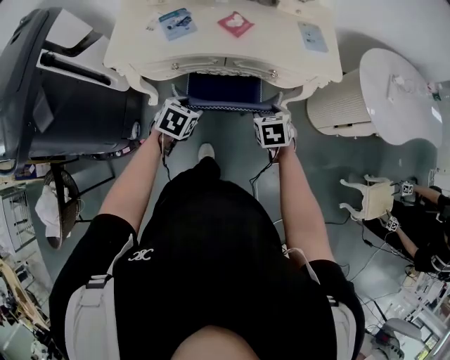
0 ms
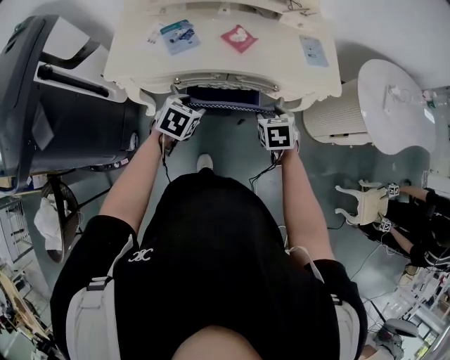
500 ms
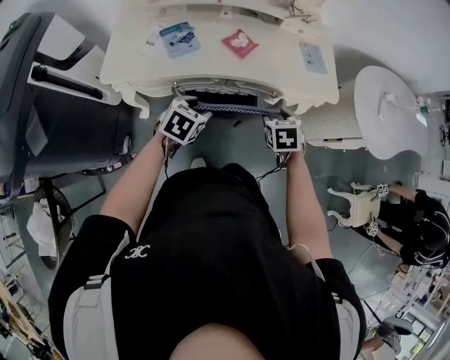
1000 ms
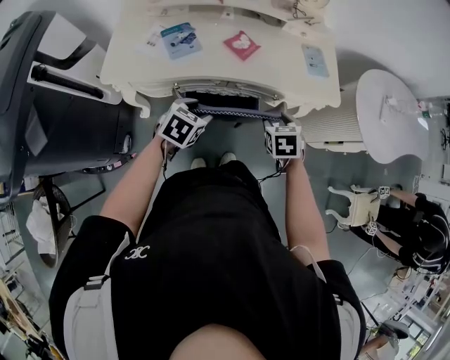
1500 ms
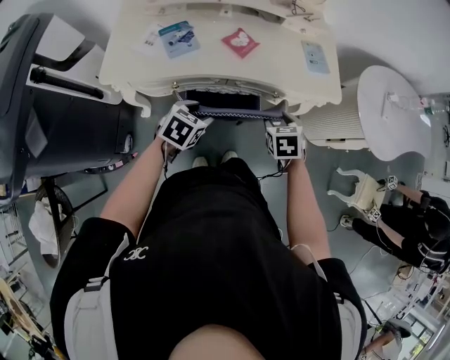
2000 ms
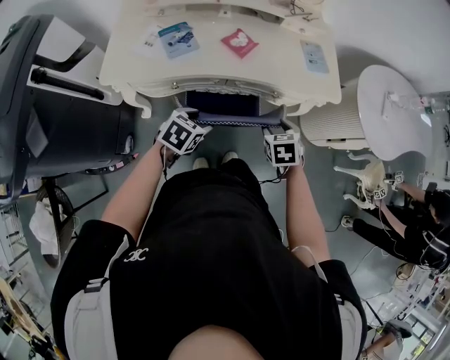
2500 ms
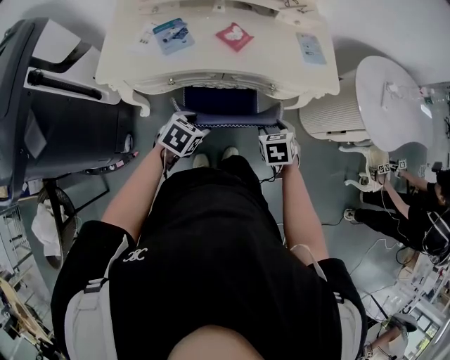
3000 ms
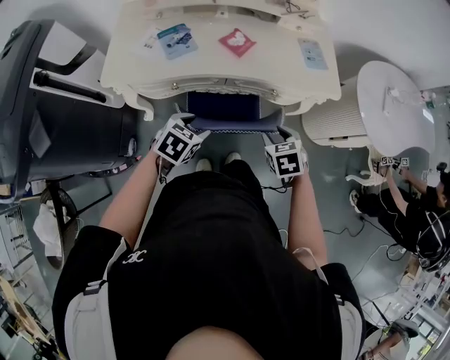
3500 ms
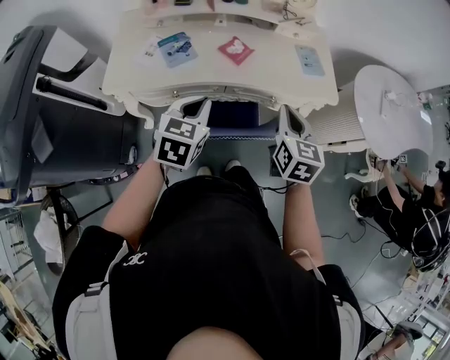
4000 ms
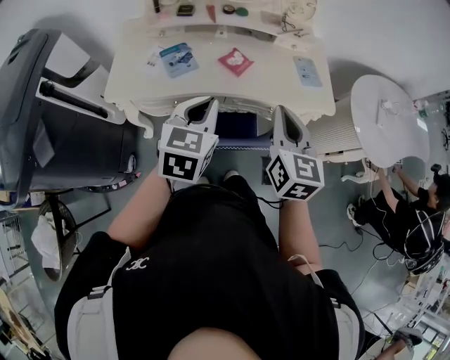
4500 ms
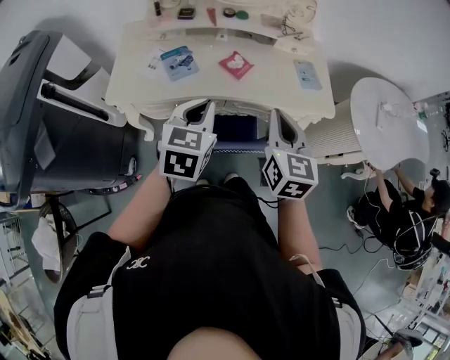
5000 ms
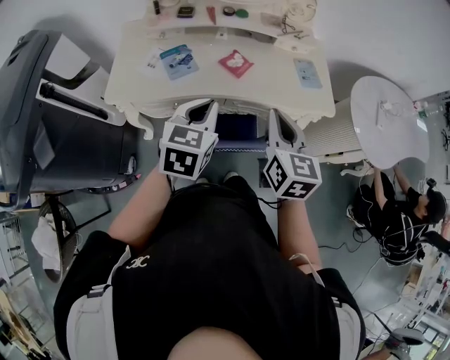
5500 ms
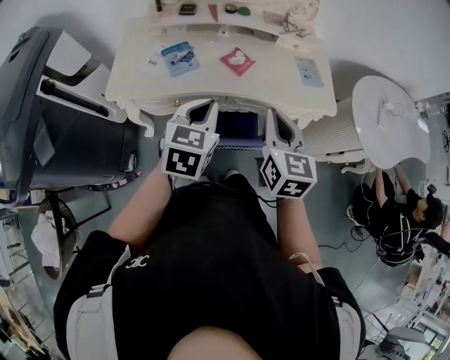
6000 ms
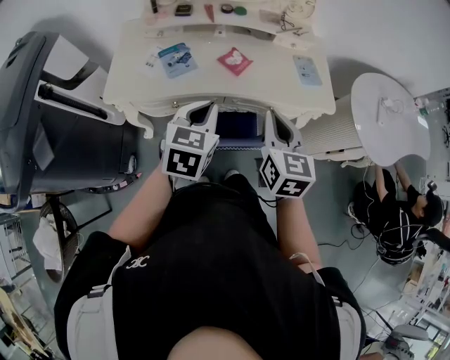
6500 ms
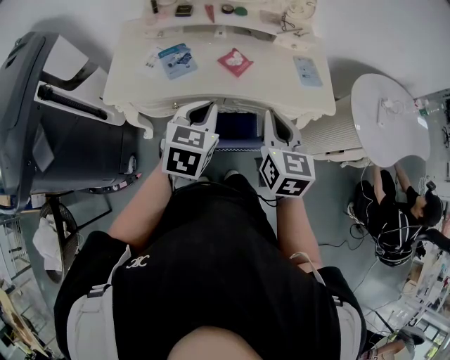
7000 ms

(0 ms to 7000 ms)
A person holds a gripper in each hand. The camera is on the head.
0 ms - 2000 ms: The two grippers go about 5 cm forward.
2000 ms - 3500 ms: The right gripper is displaced backward by some 5 cm.
3500 ms - 5000 ms: The two grippers go about 20 cm upward. The left gripper rotates roughly 30 degrees, and closes up, while the right gripper tilts its fingers some 40 degrees upward, and closes up.
5000 ms - 7000 ms: The grippers move only a little.

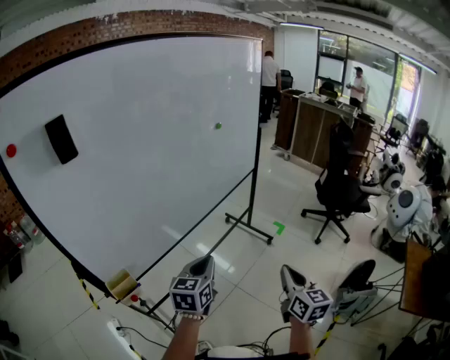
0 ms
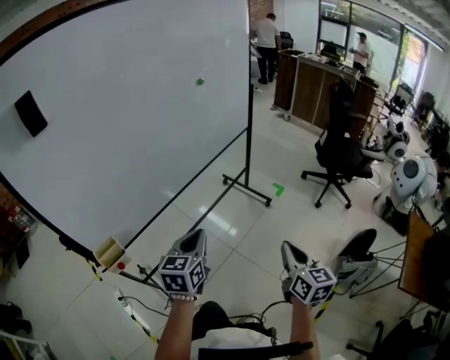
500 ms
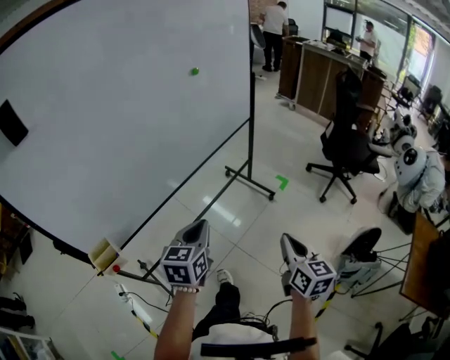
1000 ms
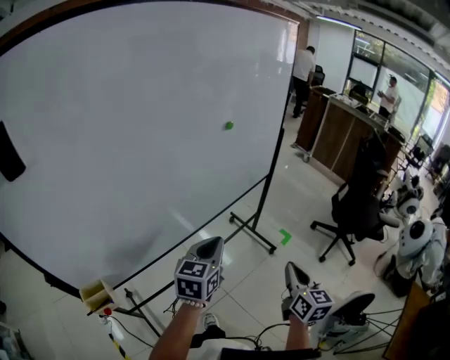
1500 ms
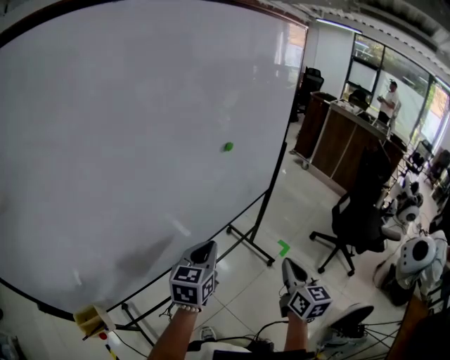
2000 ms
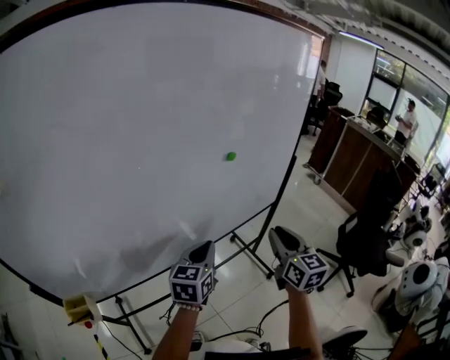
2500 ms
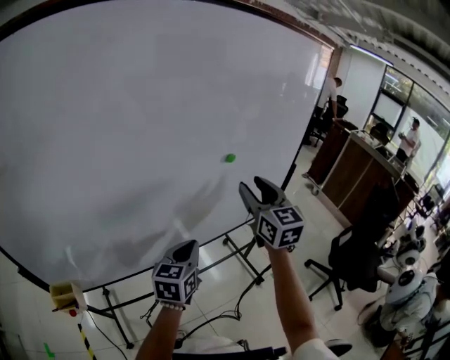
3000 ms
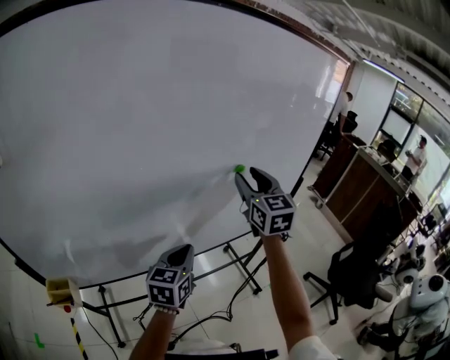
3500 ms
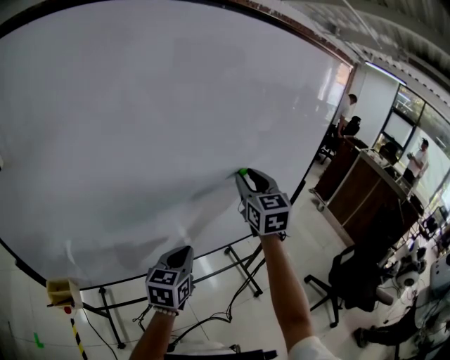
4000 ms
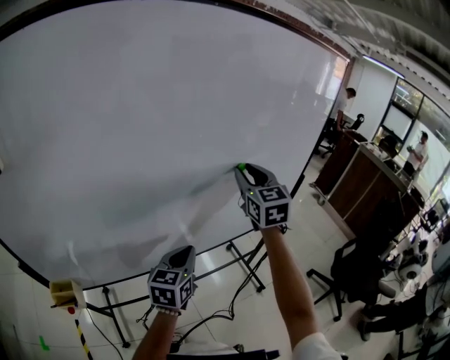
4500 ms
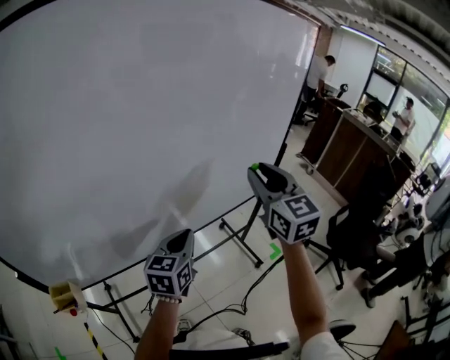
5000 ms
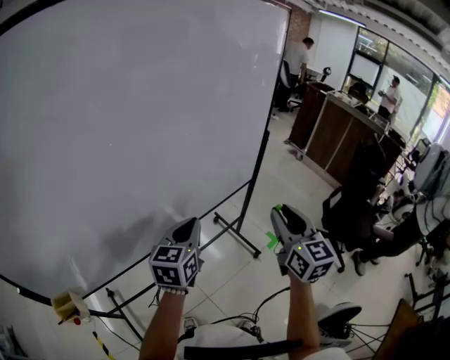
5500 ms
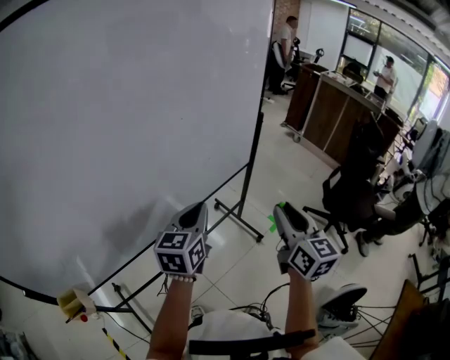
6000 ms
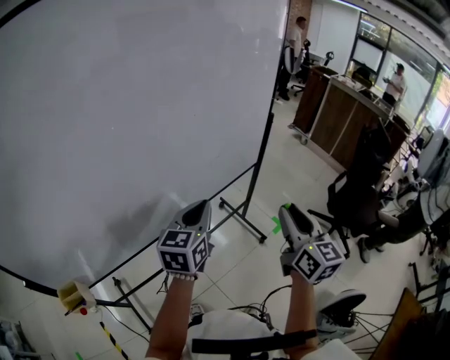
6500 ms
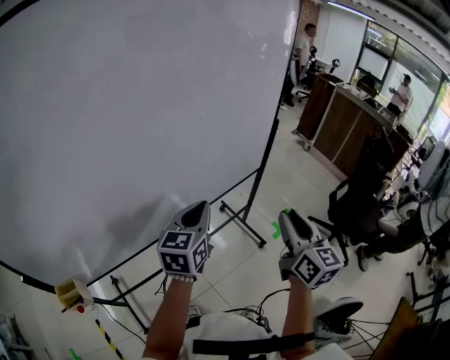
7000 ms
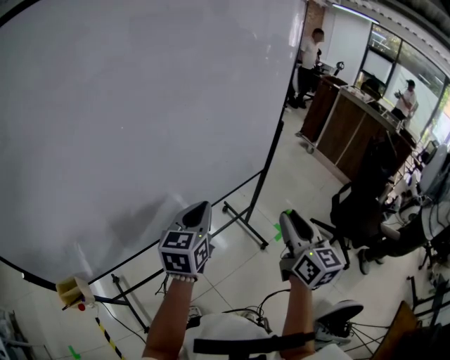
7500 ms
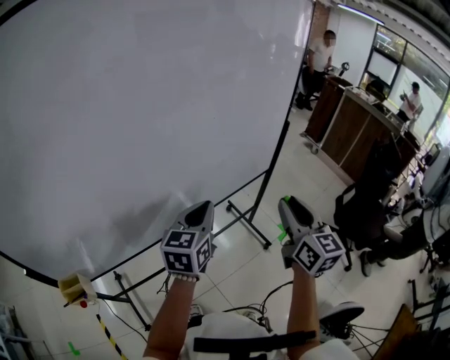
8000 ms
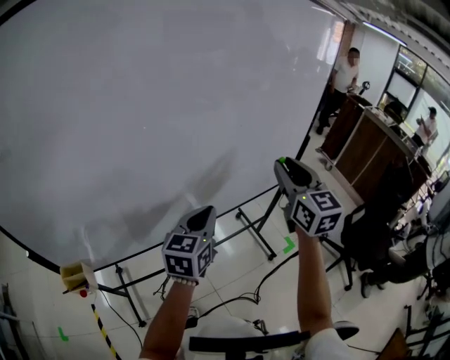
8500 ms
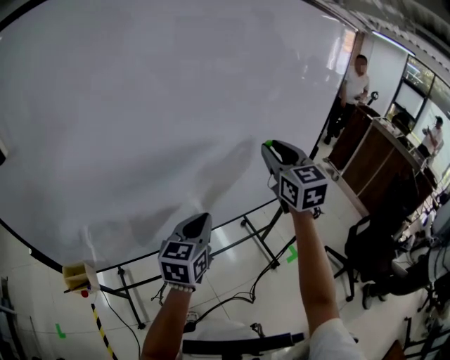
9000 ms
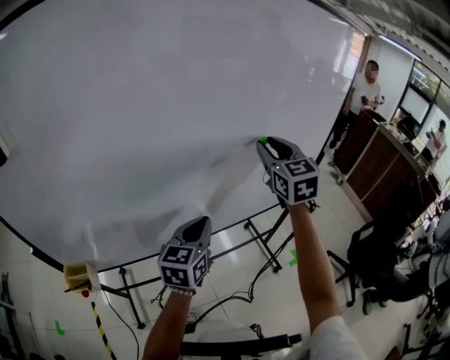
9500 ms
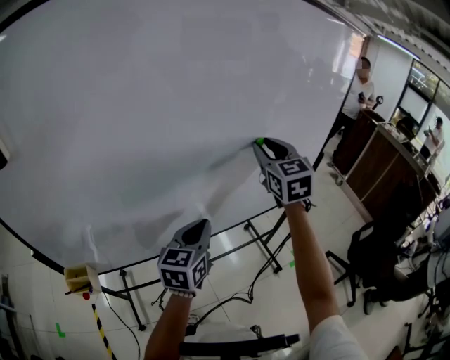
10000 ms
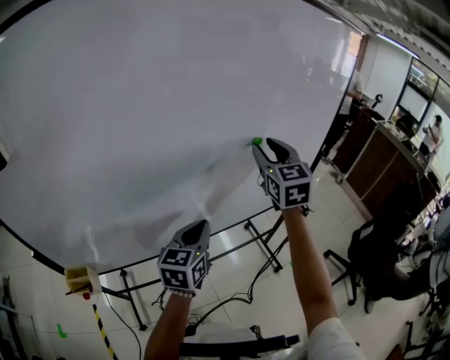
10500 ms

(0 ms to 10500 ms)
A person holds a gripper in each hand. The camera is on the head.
0 ms - 2000 ms: The grippers both shift forward by about 35 cm.
2000 ms - 4000 ms: The right gripper goes some 40 cm forward, upward and to the left, turns by roughly 40 degrees, and opens its fingers. Meanwhile the left gripper ends up approximately 5 cm from where it was.
4000 ms - 6500 ms: The right gripper moves backward, to the right and downward, about 35 cm, and swivels some 30 degrees; the left gripper is displaced to the right by some 10 cm.
6500 ms - 8500 ms: The left gripper moves to the left, about 10 cm. The right gripper travels forward, to the left and upward by about 20 cm, and turns by about 20 degrees.
8500 ms - 10500 ms: The right gripper shifts approximately 15 cm forward and to the left. The left gripper moves approximately 5 cm.

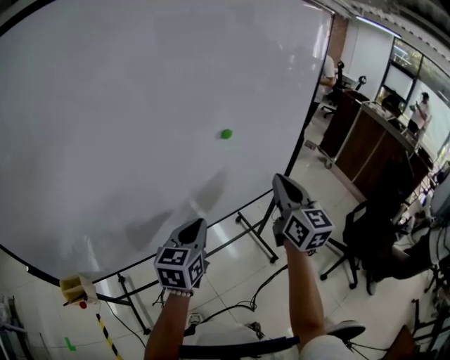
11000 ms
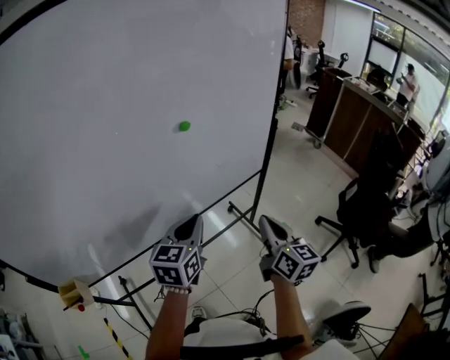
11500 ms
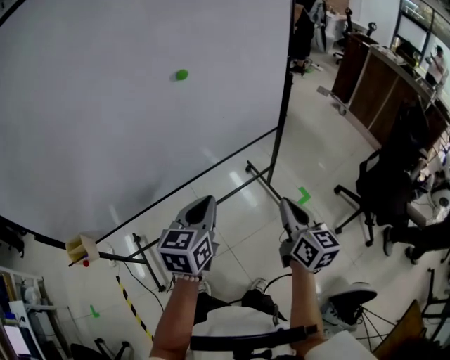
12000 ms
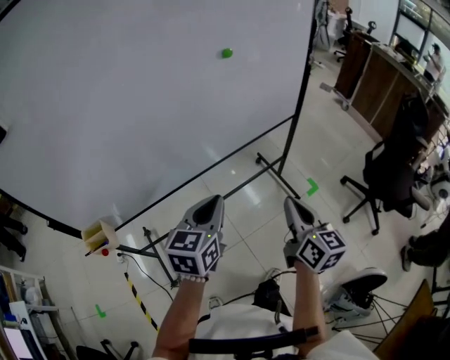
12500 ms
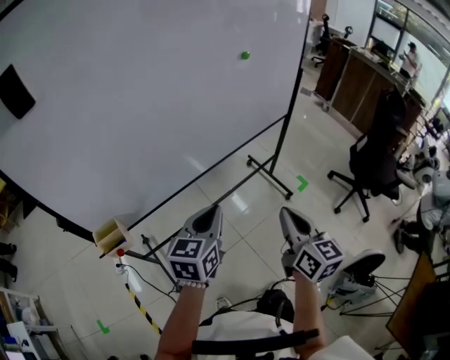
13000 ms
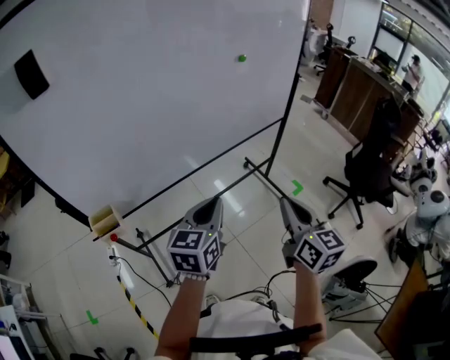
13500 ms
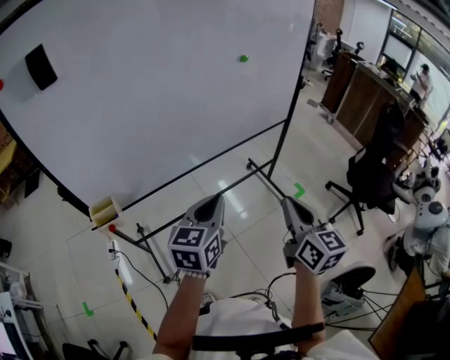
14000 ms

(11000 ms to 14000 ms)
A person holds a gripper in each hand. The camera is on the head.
11000 ms - 12500 ms: The left gripper goes some 15 cm backward; the right gripper moves backward and downward, approximately 30 cm, and rotates roughly 20 degrees.
12500 ms - 14000 ms: The left gripper is displaced backward by roughly 15 cm, while the right gripper moves backward and upward, some 15 cm.

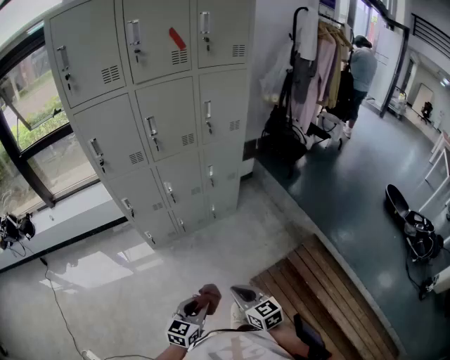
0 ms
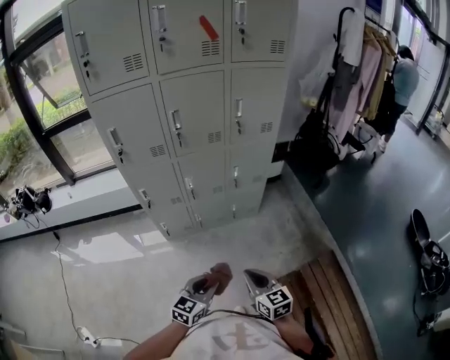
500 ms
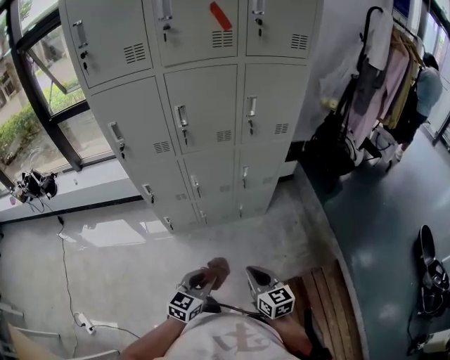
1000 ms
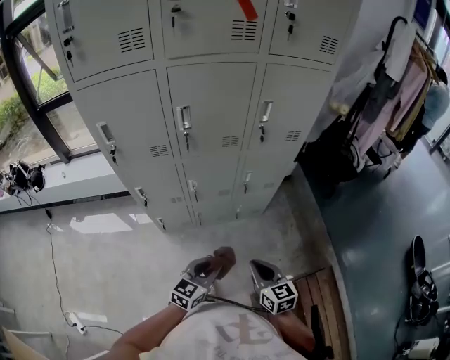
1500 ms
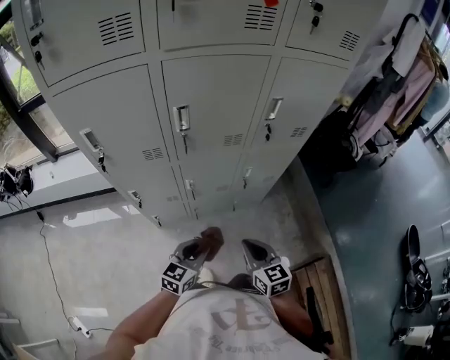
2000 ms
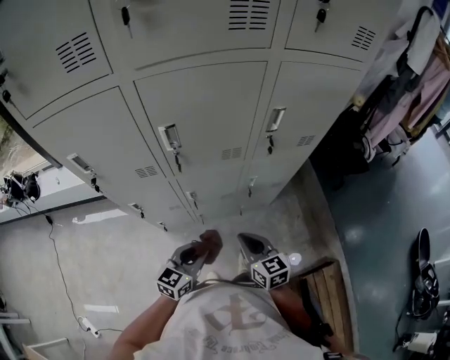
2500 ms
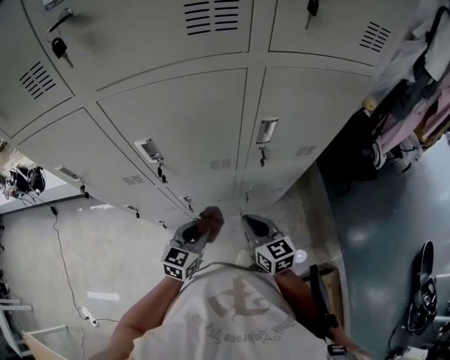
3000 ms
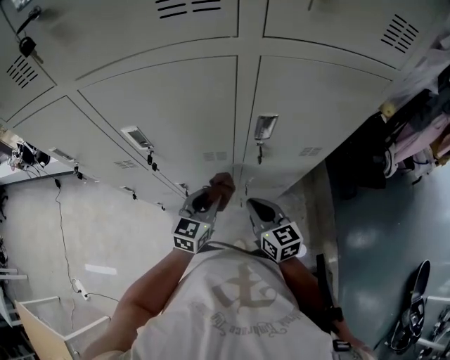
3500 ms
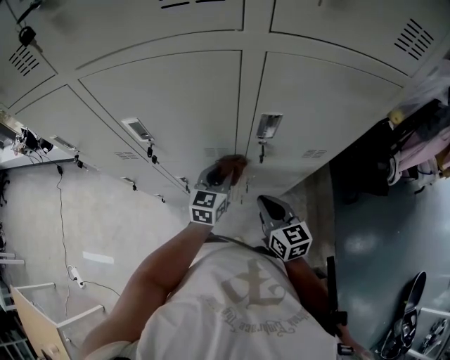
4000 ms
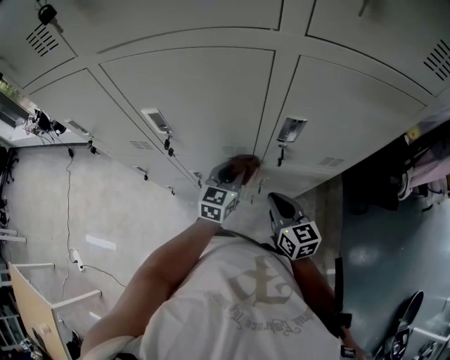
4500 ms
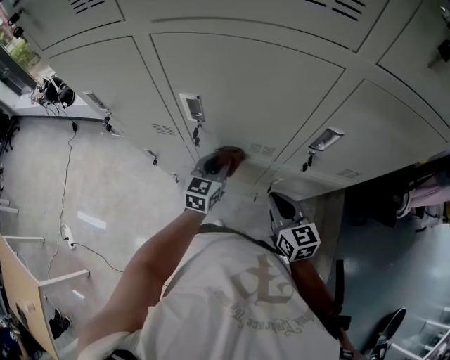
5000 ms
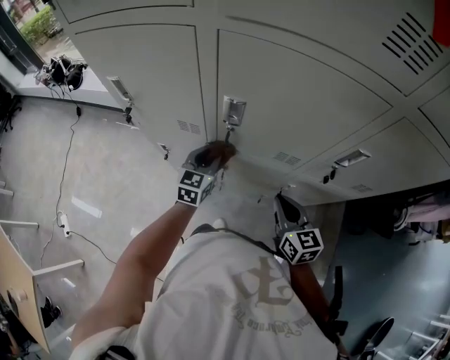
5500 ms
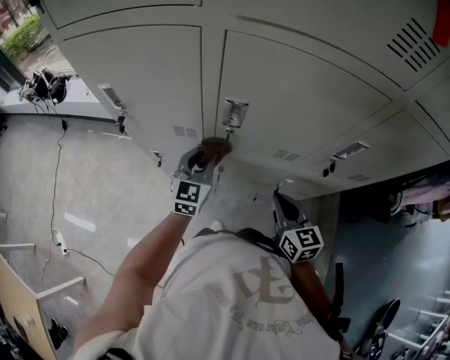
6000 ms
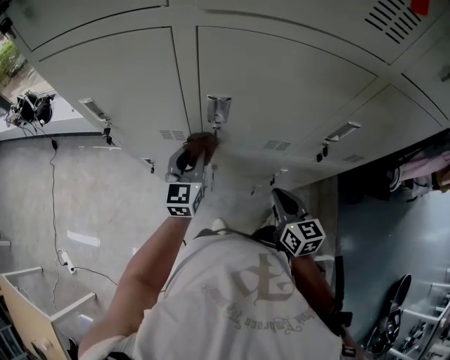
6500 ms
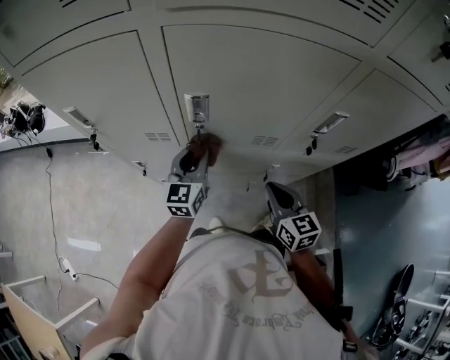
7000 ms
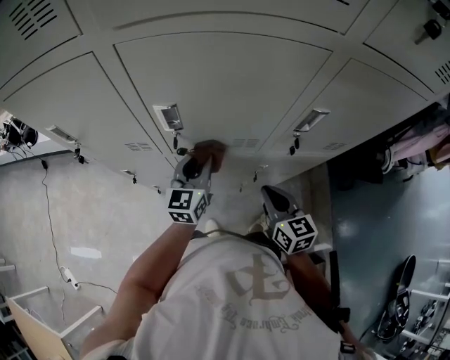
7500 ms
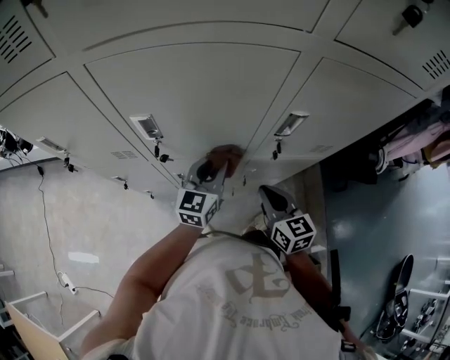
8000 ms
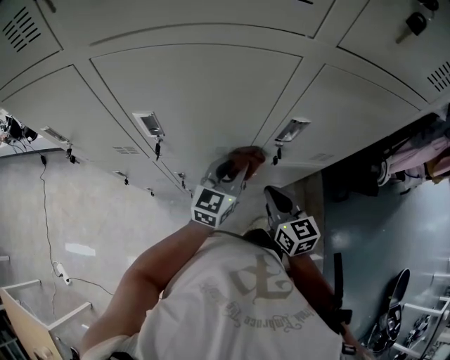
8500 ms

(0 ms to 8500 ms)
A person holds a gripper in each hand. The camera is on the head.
0 ms - 2000 ms: The grippers both shift forward by roughly 40 cm.
2000 ms - 4000 ms: The two grippers go some 30 cm forward and to the right. The left gripper rotates some 30 degrees.
4000 ms - 6500 ms: The left gripper goes about 25 cm to the left; the right gripper is displaced to the left by approximately 10 cm.
6500 ms - 8500 ms: The left gripper goes approximately 25 cm to the right, and turns by about 20 degrees, while the right gripper moves to the right, about 10 cm.
